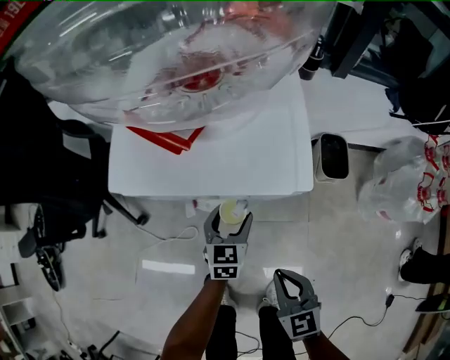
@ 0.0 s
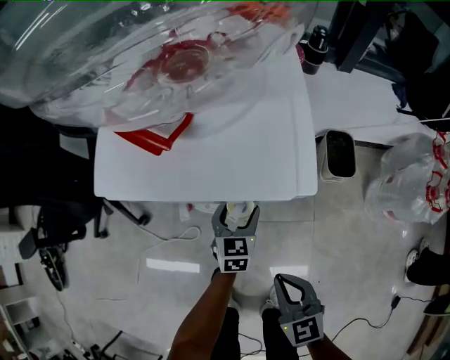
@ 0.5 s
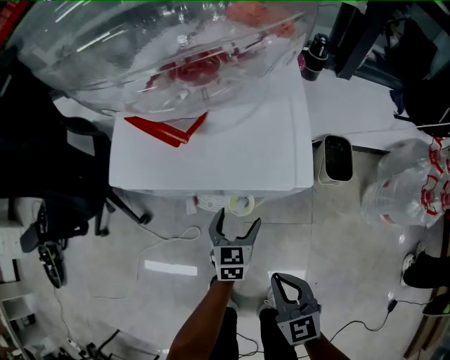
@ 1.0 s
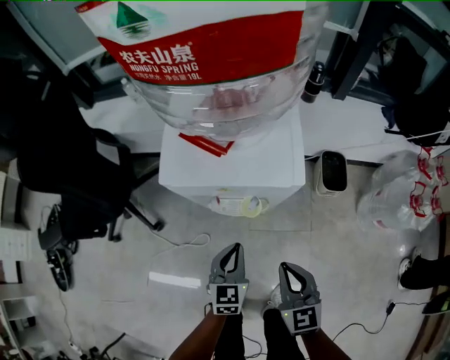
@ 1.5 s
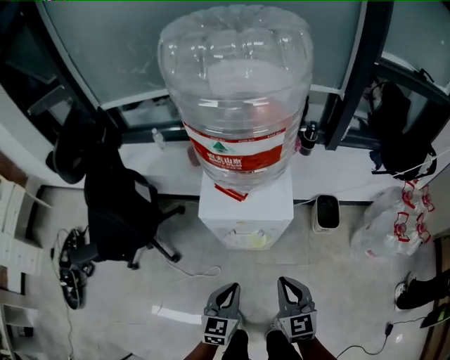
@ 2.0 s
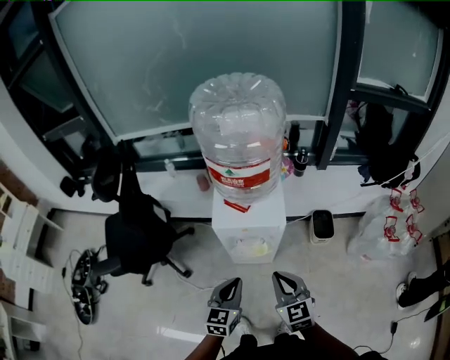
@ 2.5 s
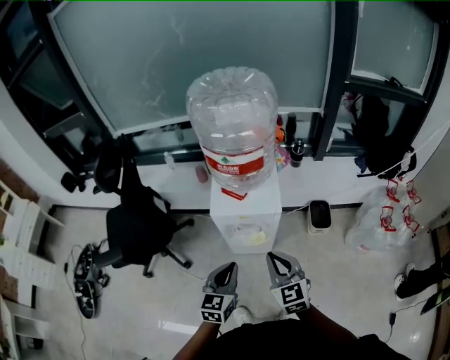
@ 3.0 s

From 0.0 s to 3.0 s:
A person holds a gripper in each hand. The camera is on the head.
From 0.0 s to 1.5 s: The right gripper is displaced upward by some 10 cm; the left gripper heads backward and upward, covering about 15 cm, and closes its fingers.
From 1.5 s to 3.0 s: Both grippers move upward, about 25 cm.

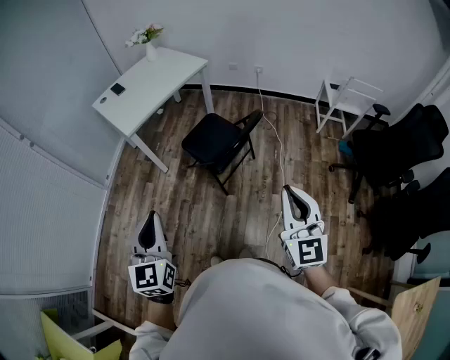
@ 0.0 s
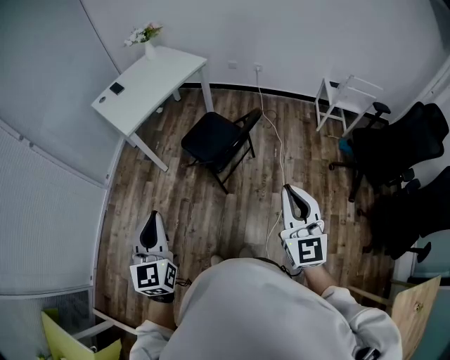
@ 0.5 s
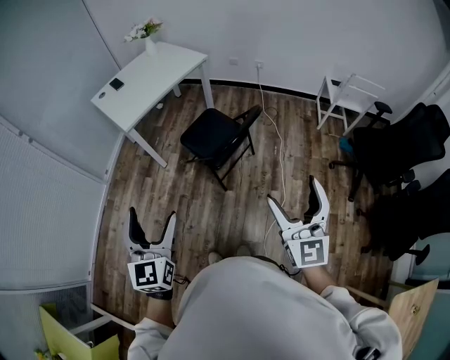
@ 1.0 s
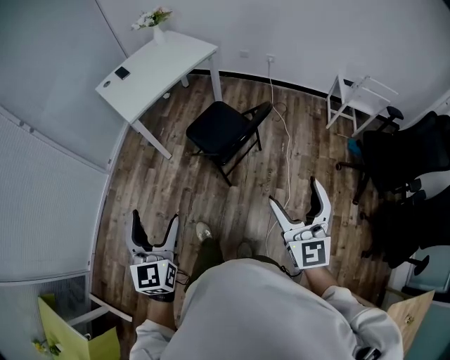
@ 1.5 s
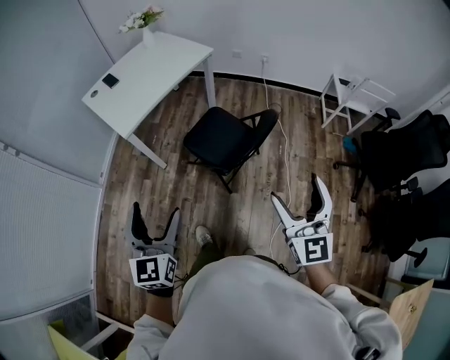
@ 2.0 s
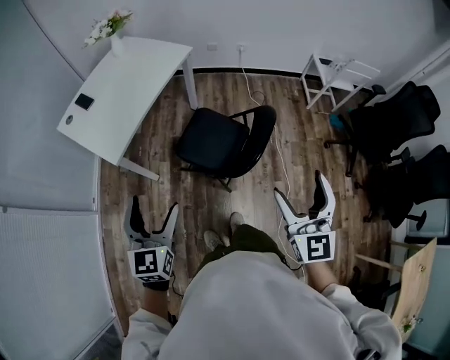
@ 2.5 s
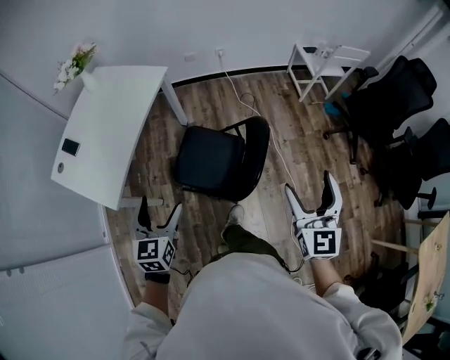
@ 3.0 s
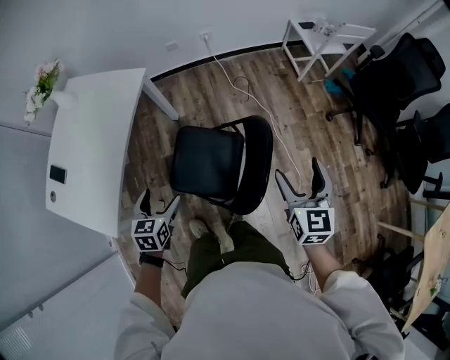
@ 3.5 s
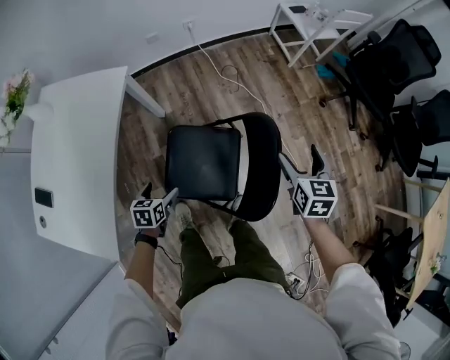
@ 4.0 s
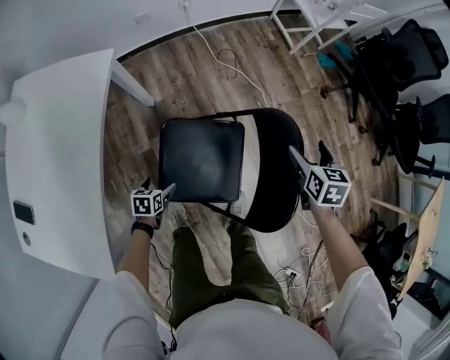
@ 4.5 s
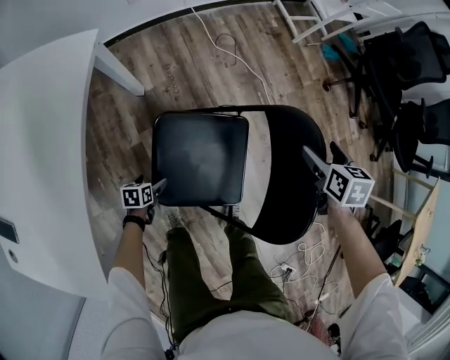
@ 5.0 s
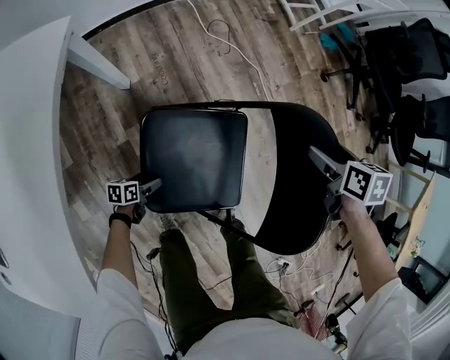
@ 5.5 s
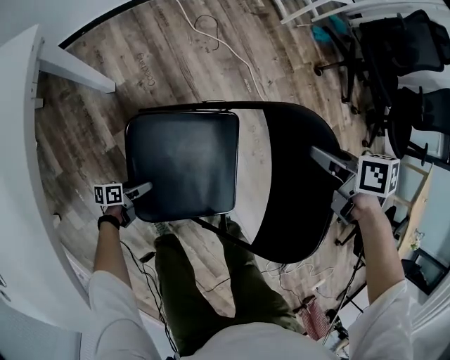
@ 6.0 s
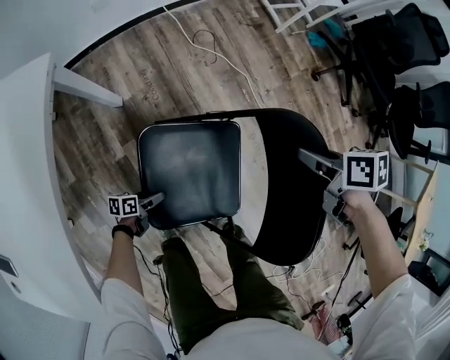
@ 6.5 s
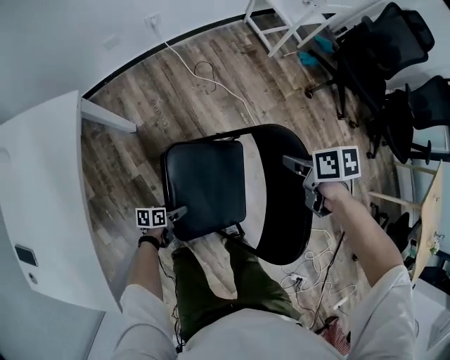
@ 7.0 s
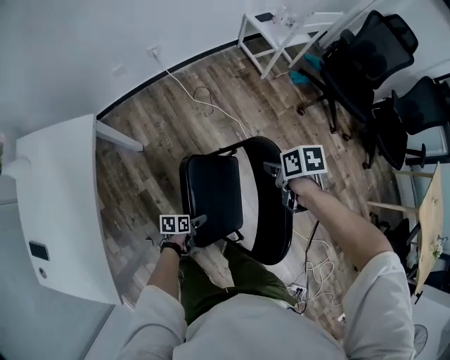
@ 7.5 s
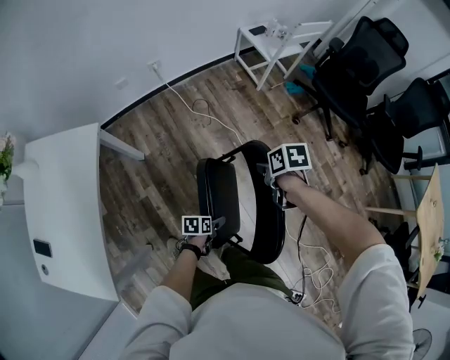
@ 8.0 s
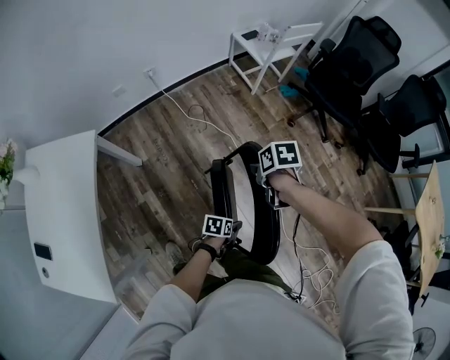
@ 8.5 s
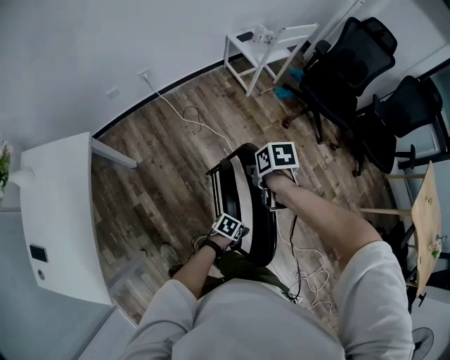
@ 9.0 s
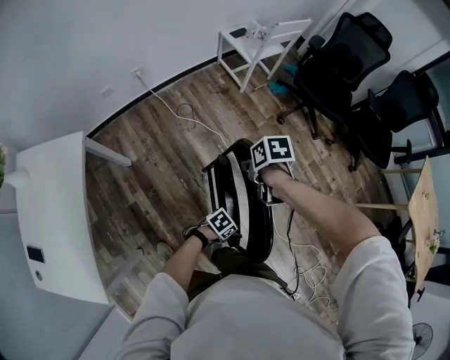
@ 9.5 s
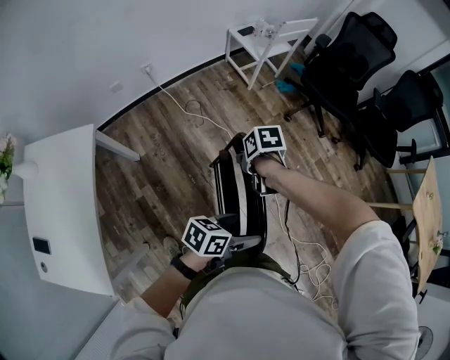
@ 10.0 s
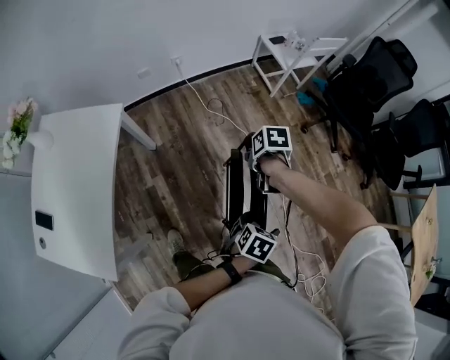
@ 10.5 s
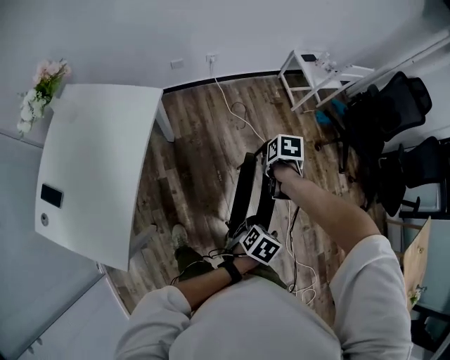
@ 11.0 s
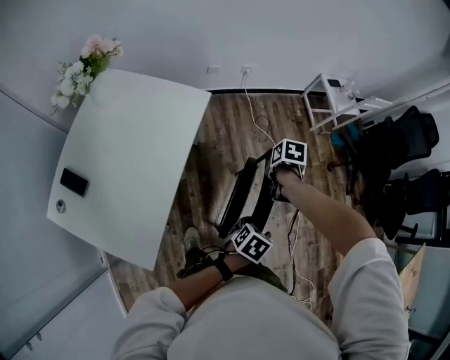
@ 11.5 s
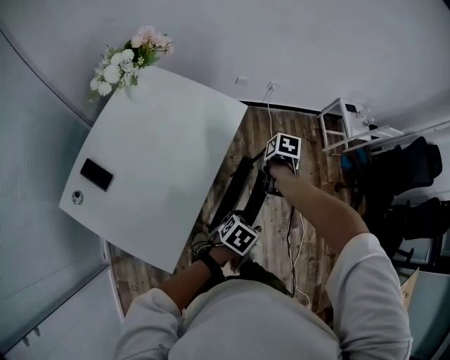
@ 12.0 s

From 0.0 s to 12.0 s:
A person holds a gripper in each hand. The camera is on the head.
From 0.0 s to 2.0 s: Both grippers travel together forward, about 15 cm. The left gripper opens up. Meanwhile the right gripper opens its fingers.
From 2.0 s to 4.0 s: The two grippers travel together, roughly 50 cm. The left gripper tips its fingers downward by some 50 degrees; the right gripper tilts its fingers about 40 degrees downward.
From 4.0 s to 6.0 s: The left gripper goes about 40 cm downward, and changes its angle by about 50 degrees, while the right gripper shifts about 25 cm downward, turns by some 40 degrees, and closes.
From 6.0 s to 8.0 s: The left gripper heads upward, covering roughly 30 cm, and turns by approximately 20 degrees. The right gripper moves upward, roughly 15 cm.
From 8.0 s to 10.0 s: The left gripper is displaced upward by roughly 30 cm, and swivels some 40 degrees.
From 10.0 s to 12.0 s: The pair of grippers is taken about 50 cm. The left gripper changes its angle by about 40 degrees, and closes its fingers.

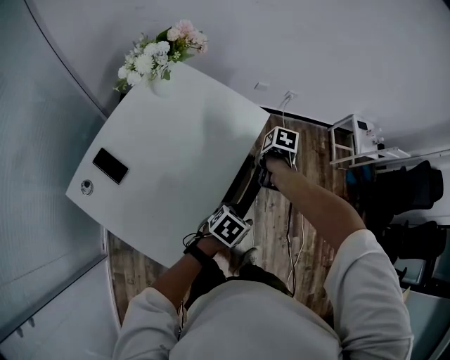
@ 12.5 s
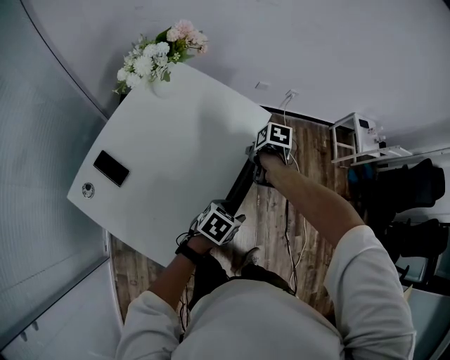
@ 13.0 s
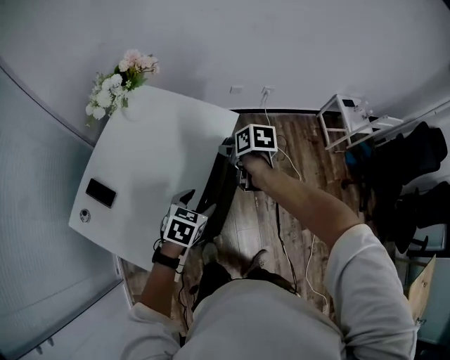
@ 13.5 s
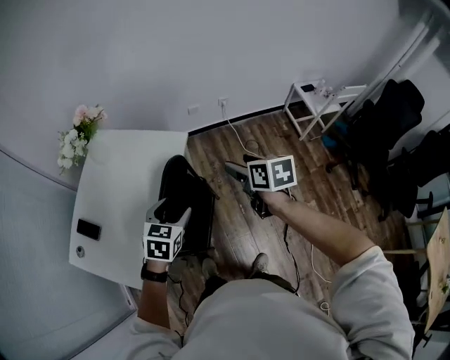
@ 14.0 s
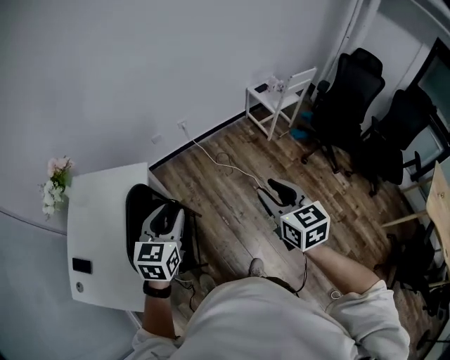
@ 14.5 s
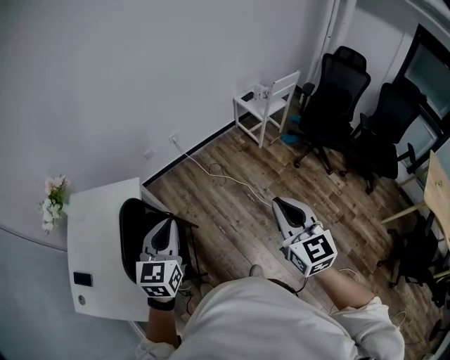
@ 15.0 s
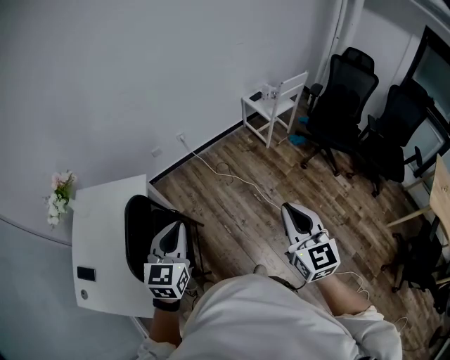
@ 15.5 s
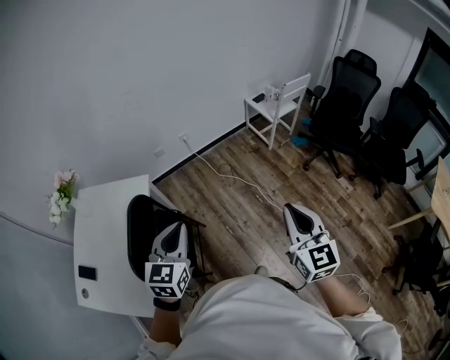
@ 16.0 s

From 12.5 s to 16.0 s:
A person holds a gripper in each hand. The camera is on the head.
From 12.5 s to 14.5 s: The left gripper is displaced upward by some 25 cm, and turns by approximately 40 degrees, while the right gripper moves approximately 60 cm, and points its fingers approximately 60 degrees further upward.
From 14.5 s to 16.0 s: The left gripper is displaced to the right by some 5 cm. Meanwhile the right gripper heads to the right and backward, covering roughly 10 cm.

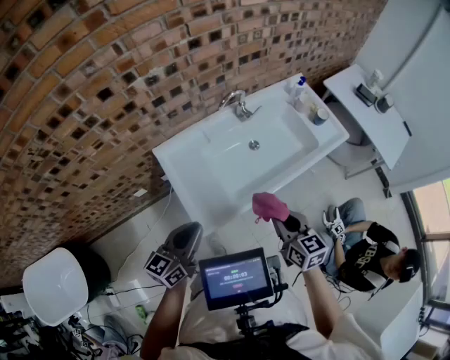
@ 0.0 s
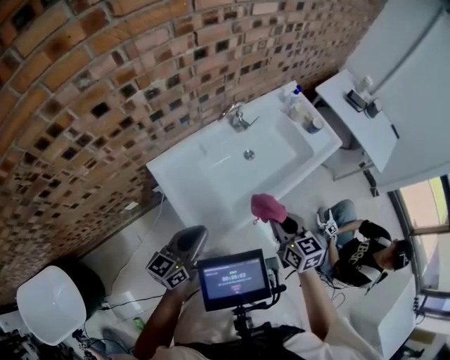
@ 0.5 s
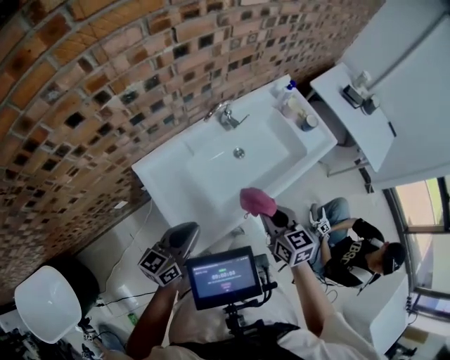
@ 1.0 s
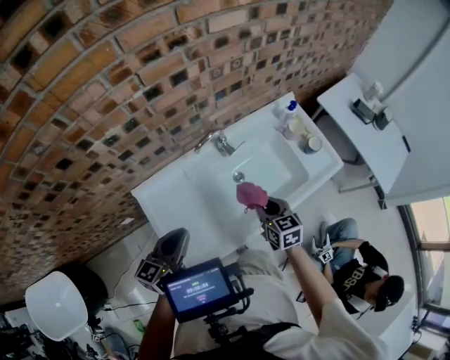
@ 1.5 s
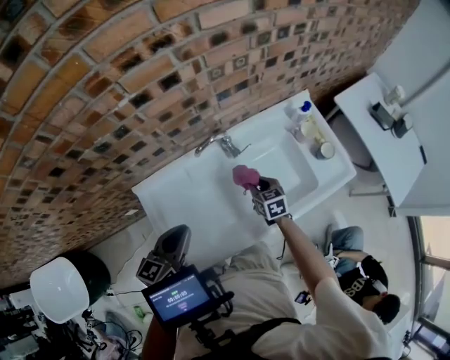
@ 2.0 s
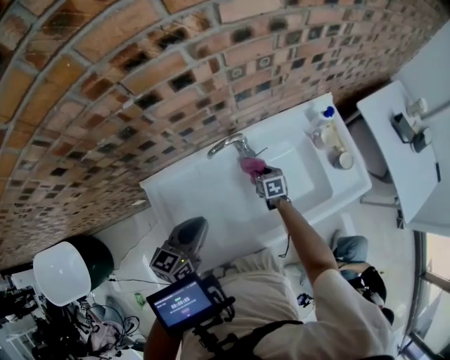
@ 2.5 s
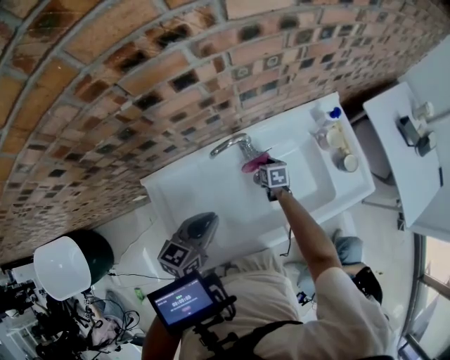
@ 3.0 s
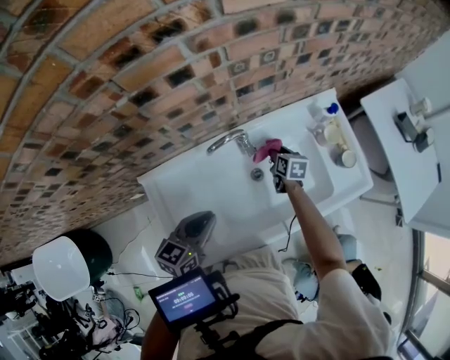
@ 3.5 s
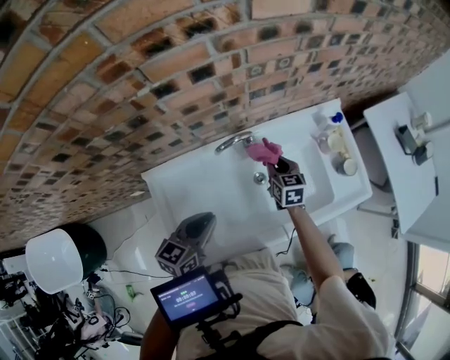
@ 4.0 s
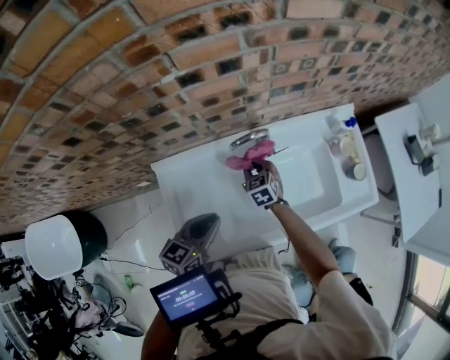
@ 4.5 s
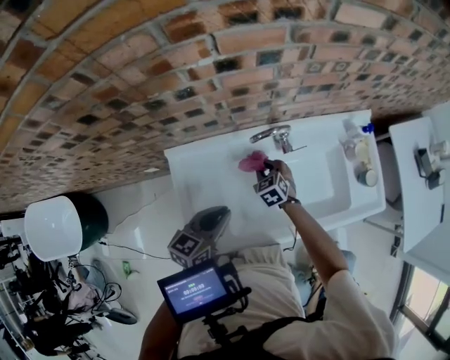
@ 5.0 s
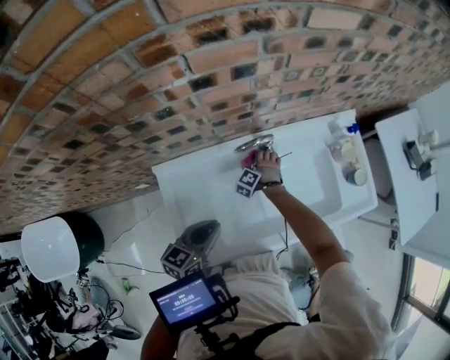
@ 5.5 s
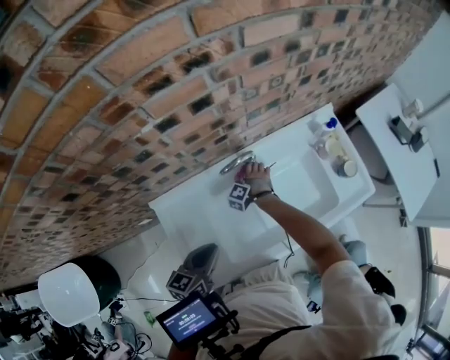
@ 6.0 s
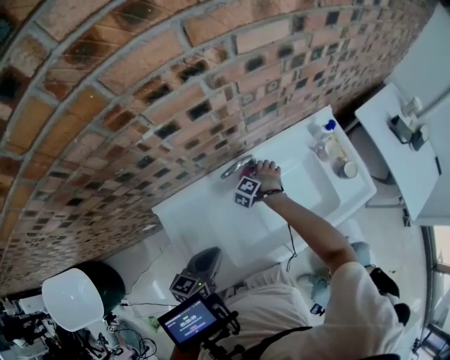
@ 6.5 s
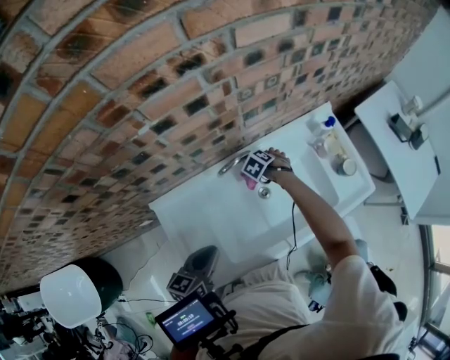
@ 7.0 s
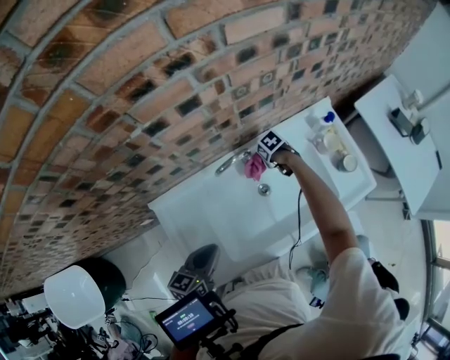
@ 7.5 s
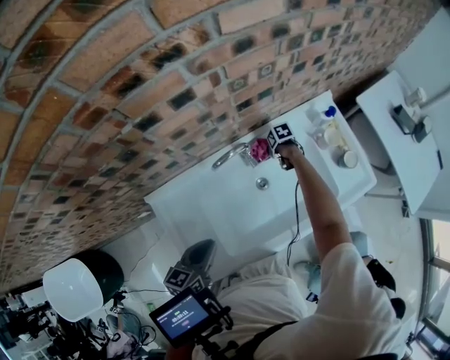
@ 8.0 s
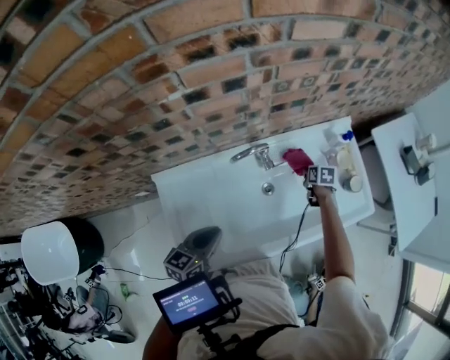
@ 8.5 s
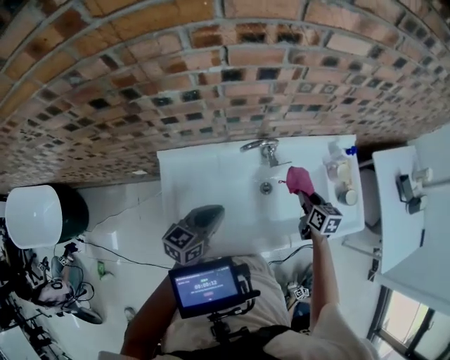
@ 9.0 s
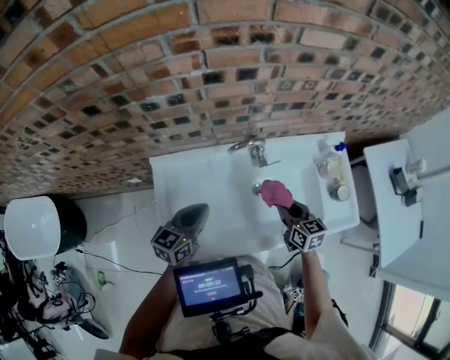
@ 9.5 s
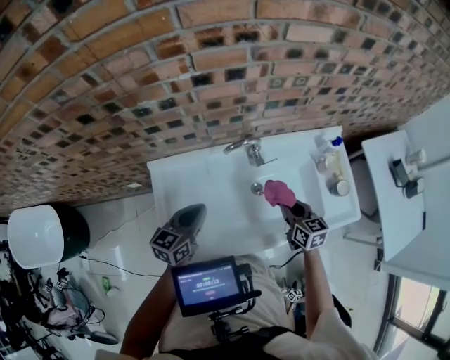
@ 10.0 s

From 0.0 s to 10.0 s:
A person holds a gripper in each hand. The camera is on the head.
From 0.0 s to 2.0 s: The left gripper moves forward, about 25 cm. Meanwhile the right gripper heads forward and downward, covering approximately 40 cm.
From 2.0 s to 4.0 s: The left gripper moves downward, roughly 5 cm, while the right gripper heads forward, covering some 10 cm, and travels downward and back again, some 10 cm each way.
From 4.0 s to 6.0 s: The right gripper travels downward by some 15 cm, and twists roughly 70 degrees counterclockwise, seen from behind.
From 6.0 s to 8.0 s: The right gripper moves some 15 cm, and rotates around the line of its fingers by approximately 70 degrees, clockwise from behind.
From 8.0 s to 10.0 s: The right gripper is displaced upward and backward by some 30 cm, and points its fingers approximately 40 degrees further upward.
